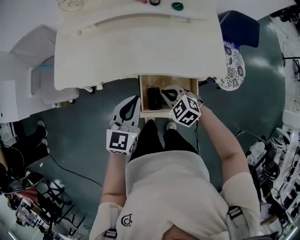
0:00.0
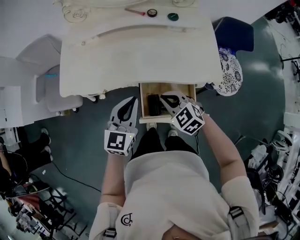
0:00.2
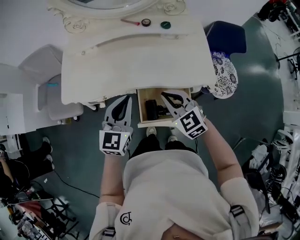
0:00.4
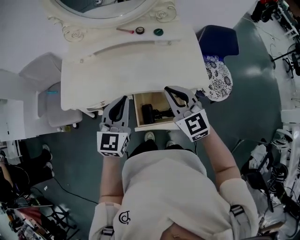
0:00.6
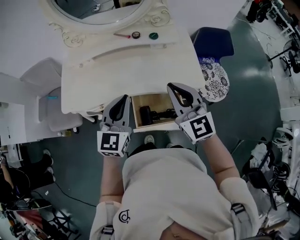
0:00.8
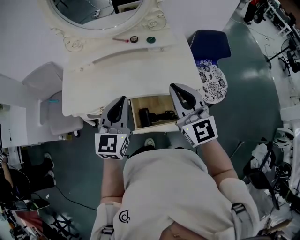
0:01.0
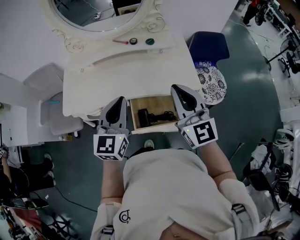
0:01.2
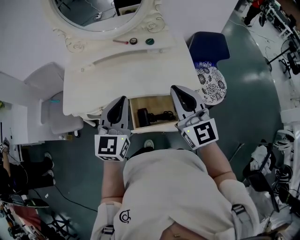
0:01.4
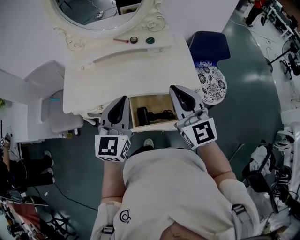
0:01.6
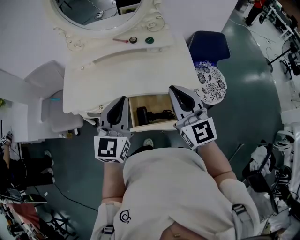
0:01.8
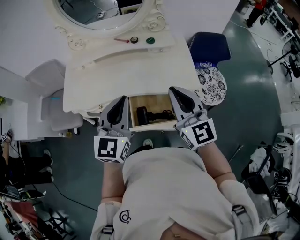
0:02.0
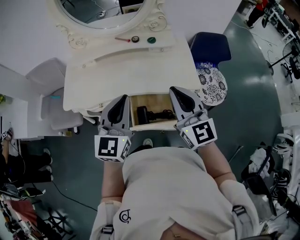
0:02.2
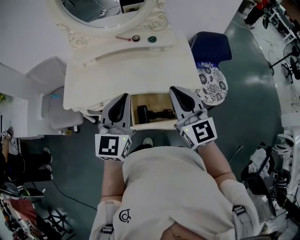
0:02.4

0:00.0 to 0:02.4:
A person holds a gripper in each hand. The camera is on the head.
0:00.0 to 0:01.2: The right gripper shifts roughly 35 cm upward, and tilts its fingers roughly 60 degrees upward. The left gripper is displaced upward by roughly 15 cm.
0:01.2 to 0:02.4: The grippers move only a little.

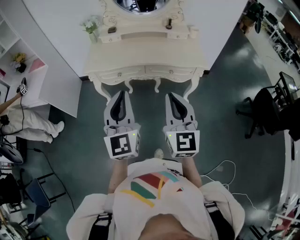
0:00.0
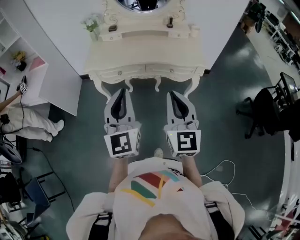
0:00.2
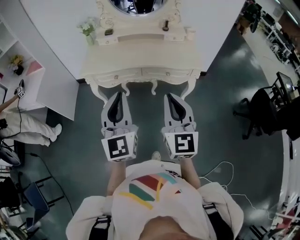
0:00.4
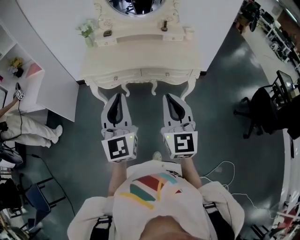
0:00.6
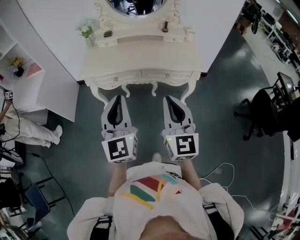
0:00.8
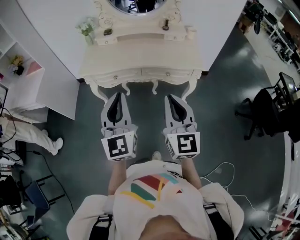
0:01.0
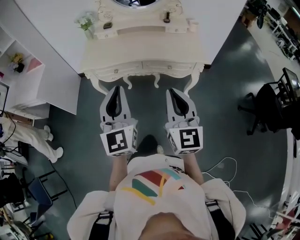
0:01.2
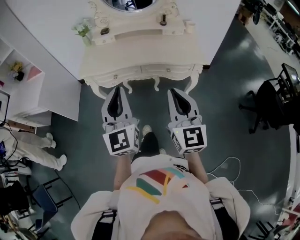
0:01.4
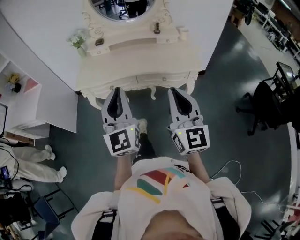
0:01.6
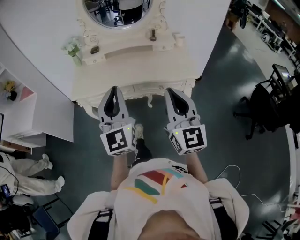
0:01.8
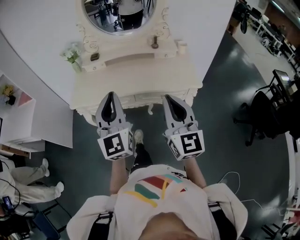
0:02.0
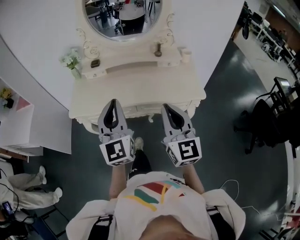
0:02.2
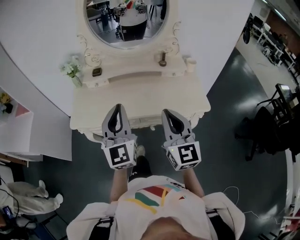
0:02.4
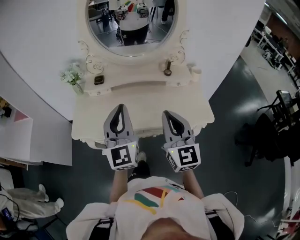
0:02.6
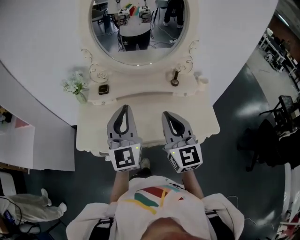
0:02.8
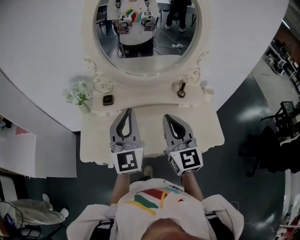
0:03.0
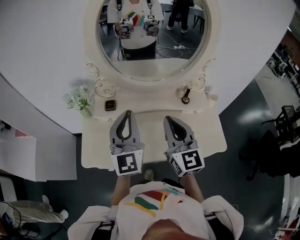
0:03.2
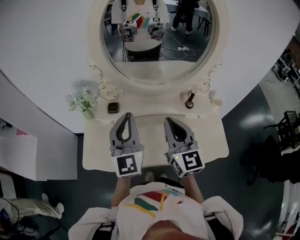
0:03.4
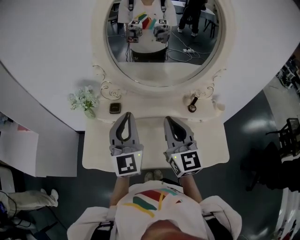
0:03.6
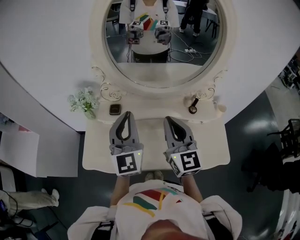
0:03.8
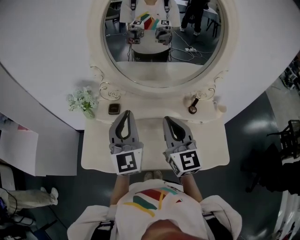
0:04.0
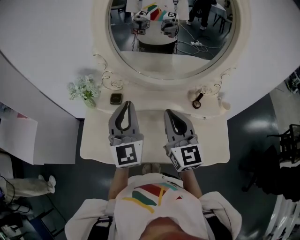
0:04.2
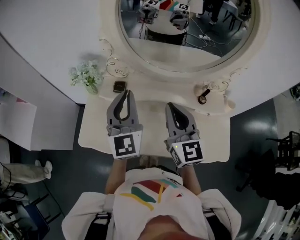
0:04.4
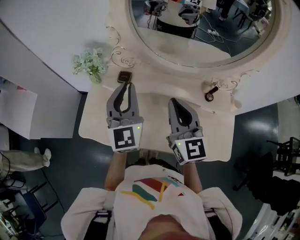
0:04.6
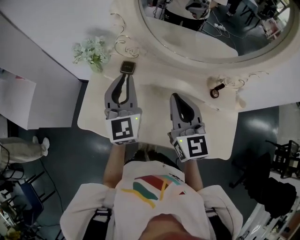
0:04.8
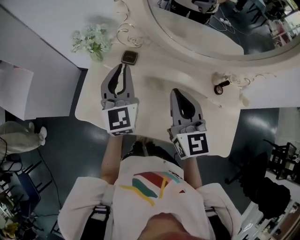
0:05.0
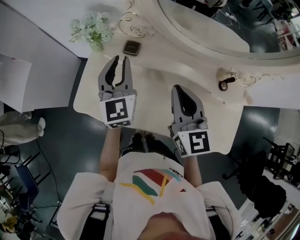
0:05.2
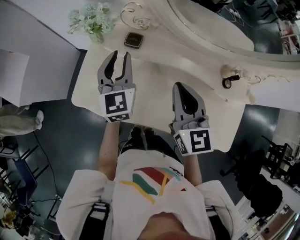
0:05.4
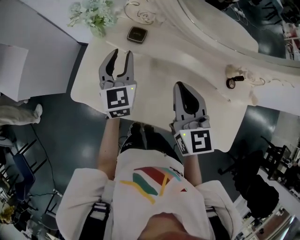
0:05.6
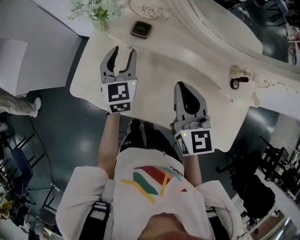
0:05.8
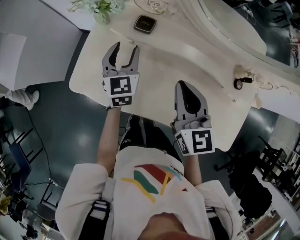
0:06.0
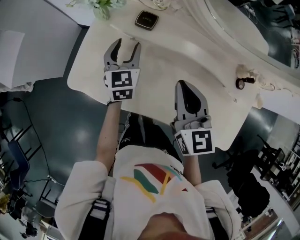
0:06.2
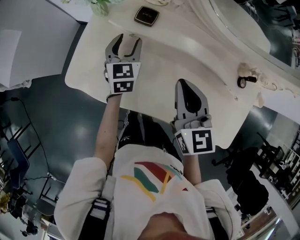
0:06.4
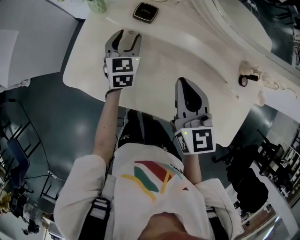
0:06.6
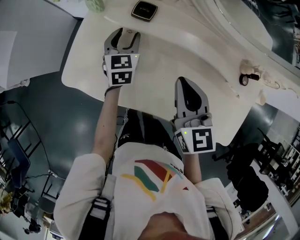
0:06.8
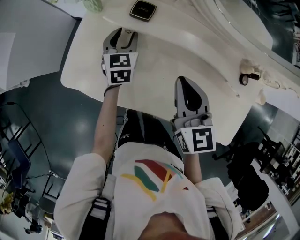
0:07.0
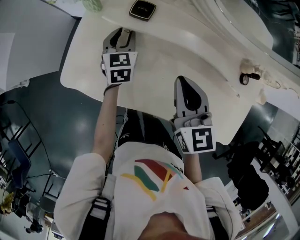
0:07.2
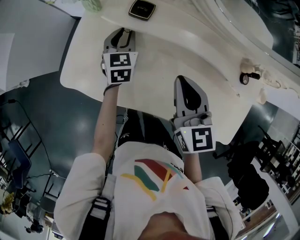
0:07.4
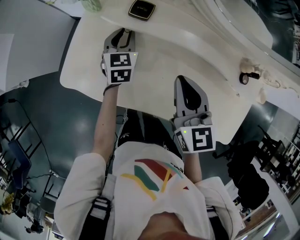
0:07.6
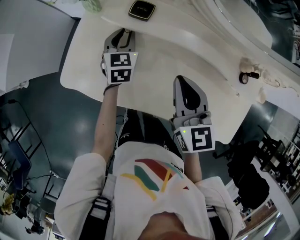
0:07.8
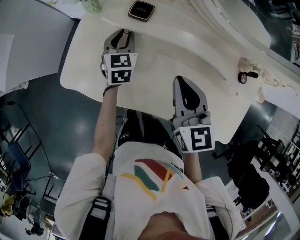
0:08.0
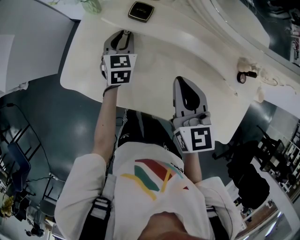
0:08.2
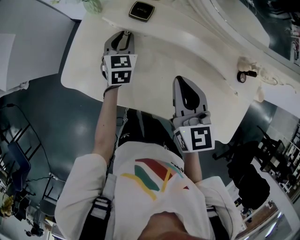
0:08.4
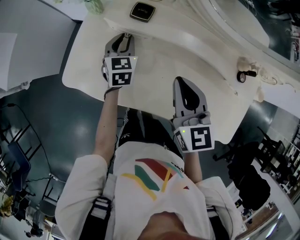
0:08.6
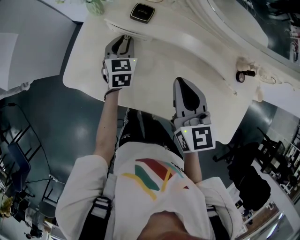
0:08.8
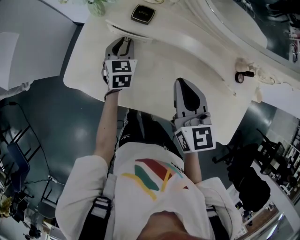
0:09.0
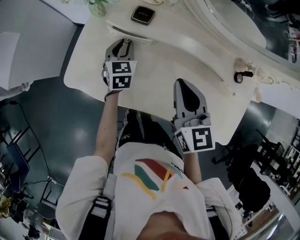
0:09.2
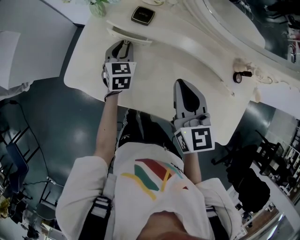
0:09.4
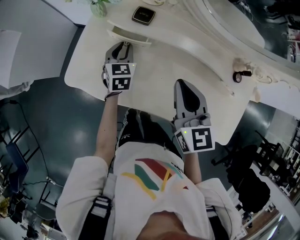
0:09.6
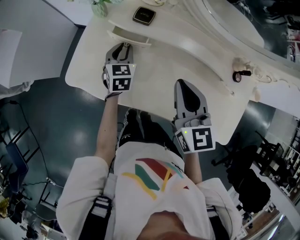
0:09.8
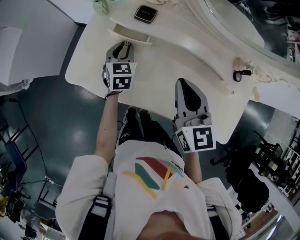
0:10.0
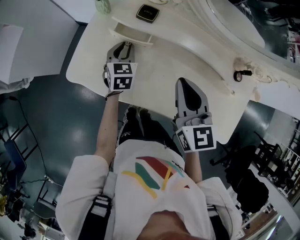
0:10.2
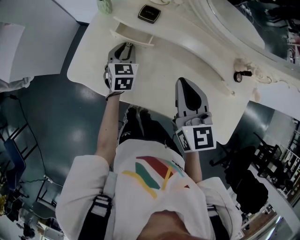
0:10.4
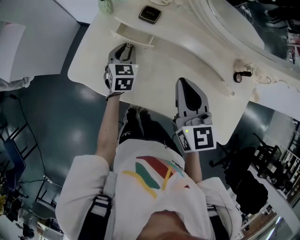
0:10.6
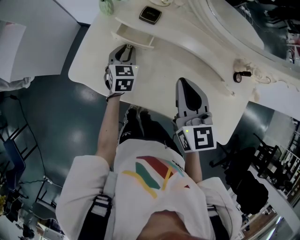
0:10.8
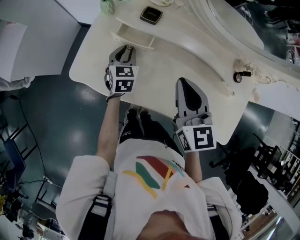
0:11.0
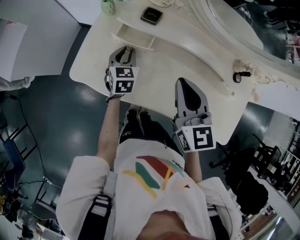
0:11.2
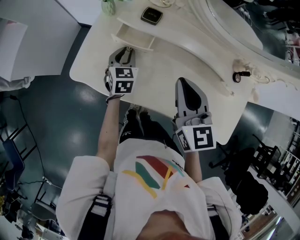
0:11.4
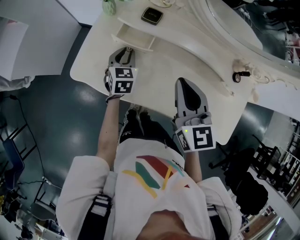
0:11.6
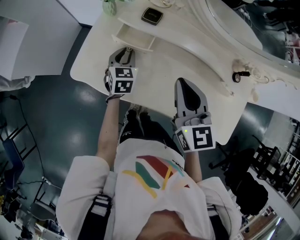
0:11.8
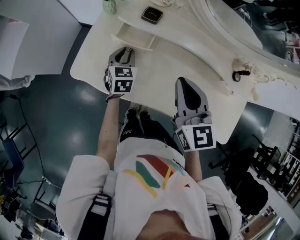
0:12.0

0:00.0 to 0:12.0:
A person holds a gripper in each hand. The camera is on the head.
0:00.0 to 0:01.6: The right gripper heads to the right and forward, covering approximately 10 cm. The left gripper heads forward, covering some 10 cm.
0:01.6 to 0:03.0: The two grippers travel together, forward, some 40 cm.
0:03.0 to 0:04.4: Both grippers move forward, some 10 cm.
0:04.4 to 0:06.0: The right gripper is displaced downward and to the left by approximately 15 cm, and swivels approximately 20 degrees. The left gripper moves downward, about 25 cm, swivels roughly 30 degrees, and opens up.
0:06.0 to 0:07.6: The left gripper is displaced downward by roughly 10 cm, and closes.
0:07.6 to 0:10.4: The grippers make only small movements.
0:10.4 to 0:12.0: The grippers move only a little.

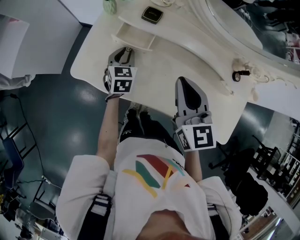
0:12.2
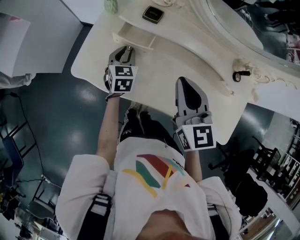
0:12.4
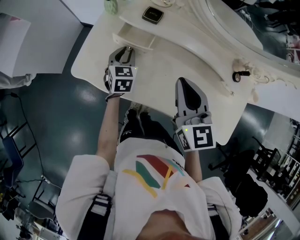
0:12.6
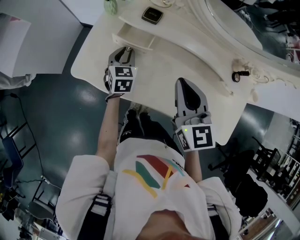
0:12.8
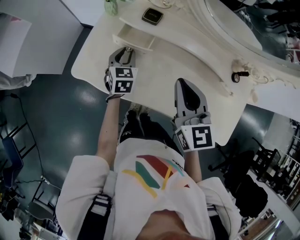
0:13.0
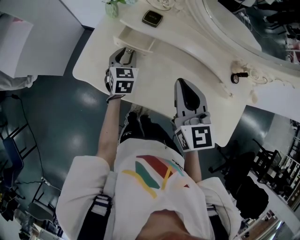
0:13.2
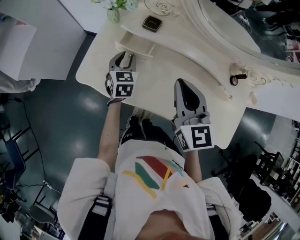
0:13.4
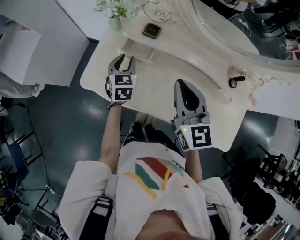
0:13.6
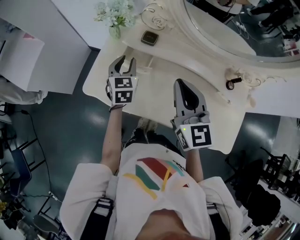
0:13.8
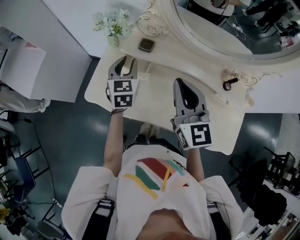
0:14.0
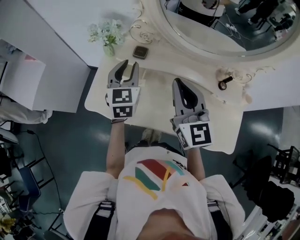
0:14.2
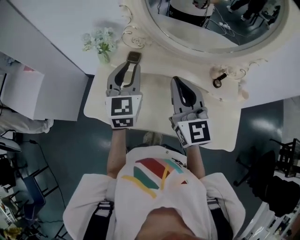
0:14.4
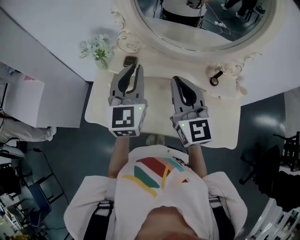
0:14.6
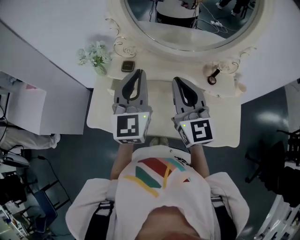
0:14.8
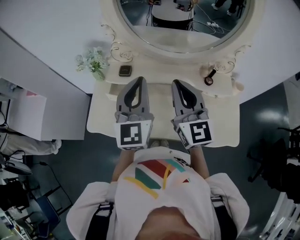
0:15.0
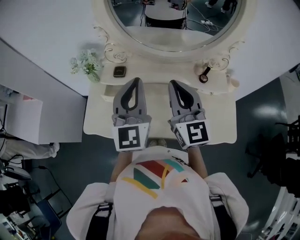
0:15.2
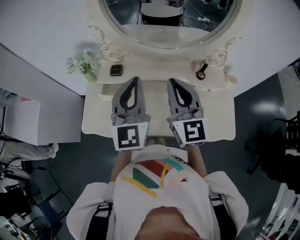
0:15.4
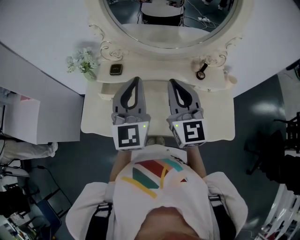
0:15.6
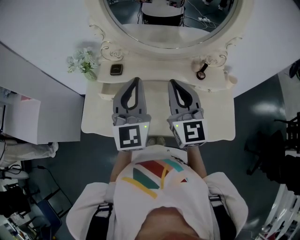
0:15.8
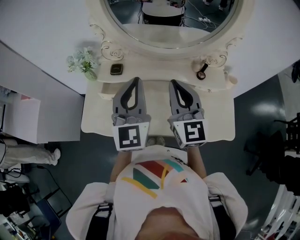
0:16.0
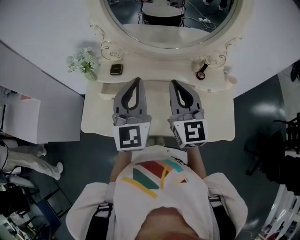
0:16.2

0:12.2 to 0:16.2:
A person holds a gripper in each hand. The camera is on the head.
0:12.2 to 0:13.6: The left gripper travels upward by approximately 5 cm.
0:13.6 to 0:14.8: The right gripper is displaced upward and to the right by approximately 15 cm, and swivels about 20 degrees; the left gripper moves upward and to the right, approximately 30 cm, points its fingers approximately 40 degrees further upward, and closes.
0:14.8 to 0:16.2: The left gripper shifts by roughly 5 cm.

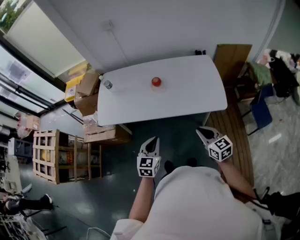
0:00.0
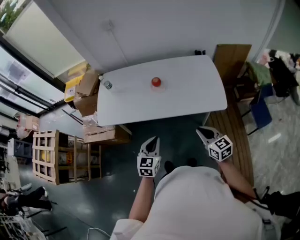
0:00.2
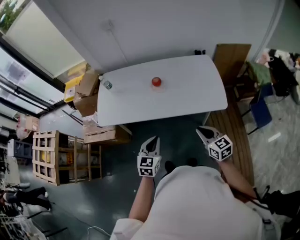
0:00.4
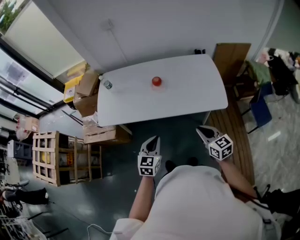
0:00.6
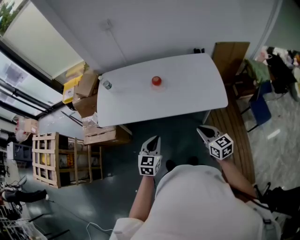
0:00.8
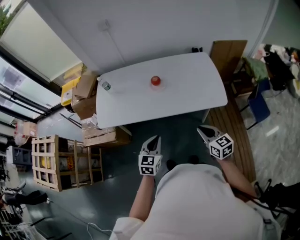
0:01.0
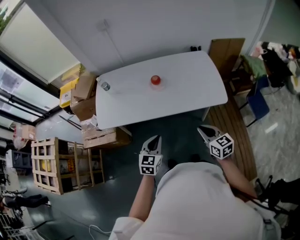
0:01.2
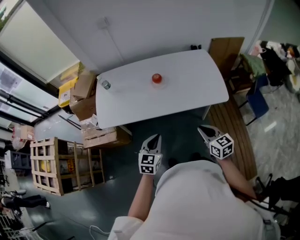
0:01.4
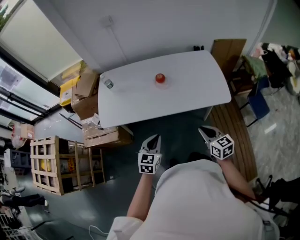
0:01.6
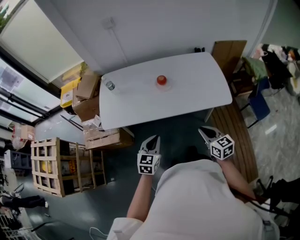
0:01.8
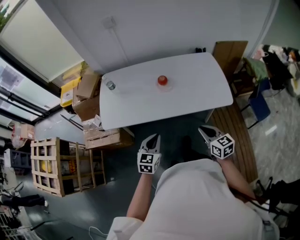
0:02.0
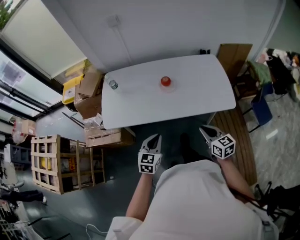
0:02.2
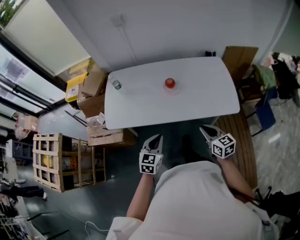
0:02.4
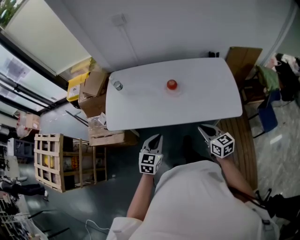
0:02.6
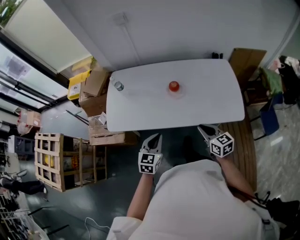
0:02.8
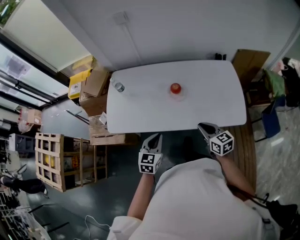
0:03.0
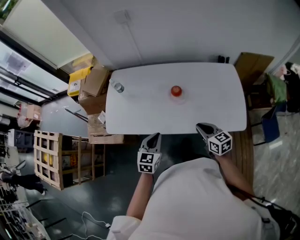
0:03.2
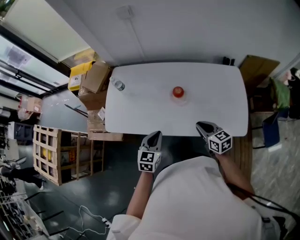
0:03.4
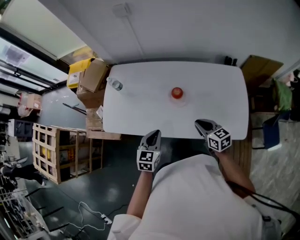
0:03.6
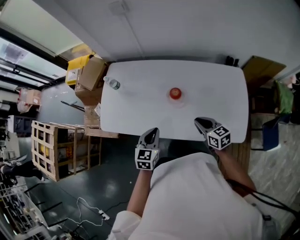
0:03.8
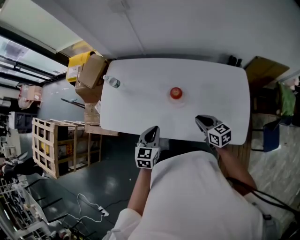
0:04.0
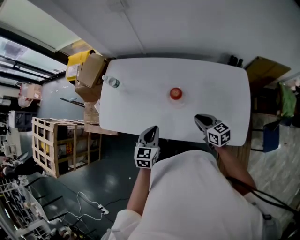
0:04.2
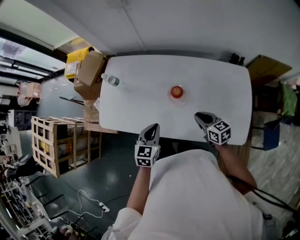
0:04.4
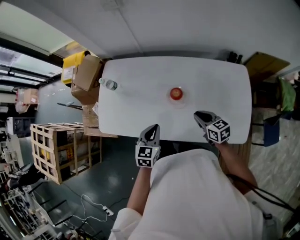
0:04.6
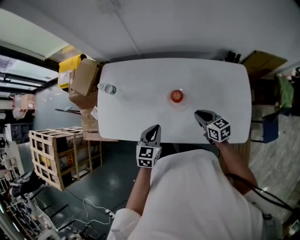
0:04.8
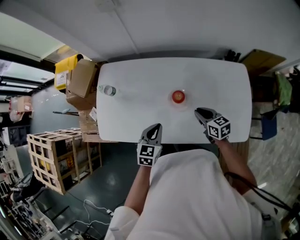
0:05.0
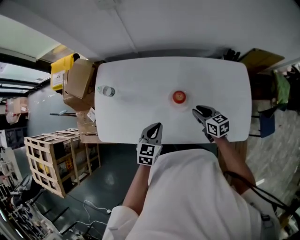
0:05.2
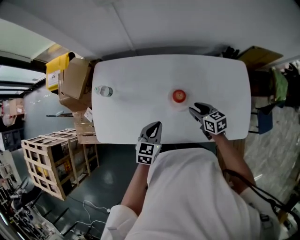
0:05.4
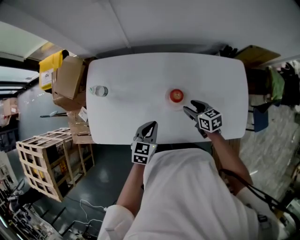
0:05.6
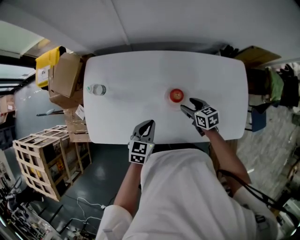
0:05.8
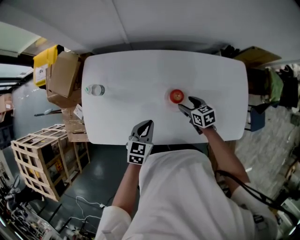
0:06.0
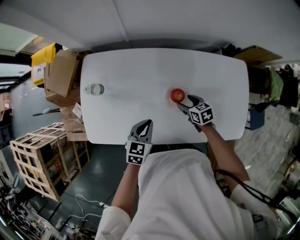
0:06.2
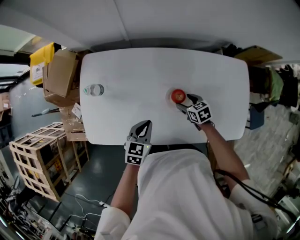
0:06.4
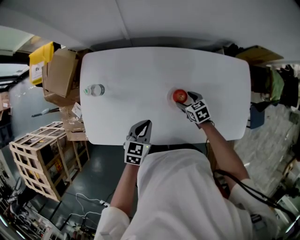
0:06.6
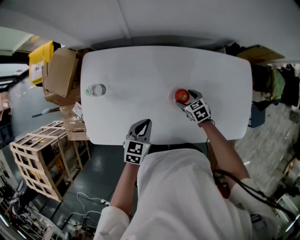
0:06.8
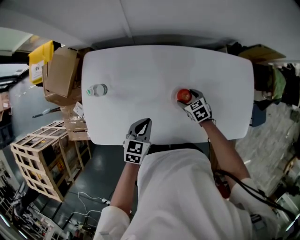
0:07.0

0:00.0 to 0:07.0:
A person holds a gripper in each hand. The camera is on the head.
0:00.0 to 0:01.4: Both grippers travel together to the left, about 5 cm.
0:01.4 to 0:02.8: The two grippers go about 10 cm forward.
0:02.8 to 0:04.2: The right gripper shifts approximately 20 cm forward. The left gripper travels forward and to the right by about 15 cm.
0:04.2 to 0:05.6: Both grippers travel together forward and downward, roughly 10 cm. The right gripper opens.
0:05.6 to 0:07.0: The right gripper goes about 10 cm downward, turns by about 30 degrees, and opens up, while the left gripper travels to the left by some 5 cm.
